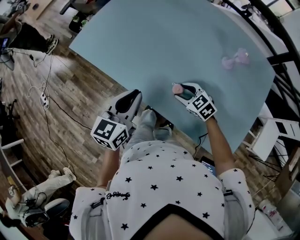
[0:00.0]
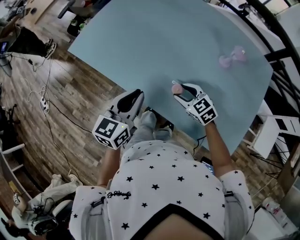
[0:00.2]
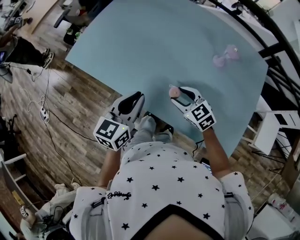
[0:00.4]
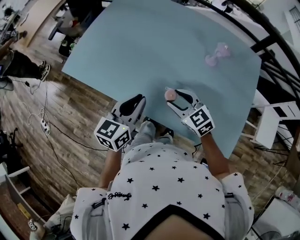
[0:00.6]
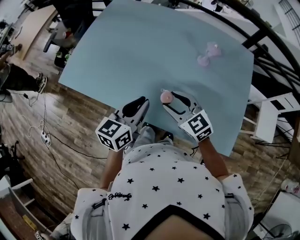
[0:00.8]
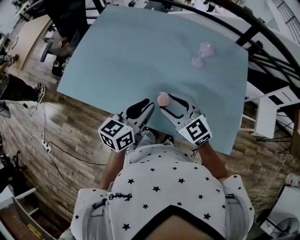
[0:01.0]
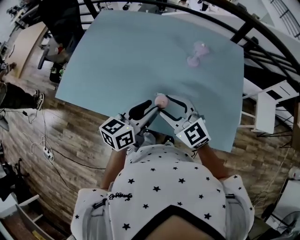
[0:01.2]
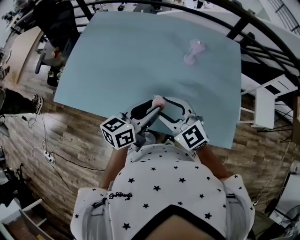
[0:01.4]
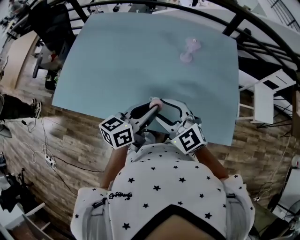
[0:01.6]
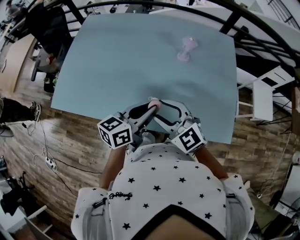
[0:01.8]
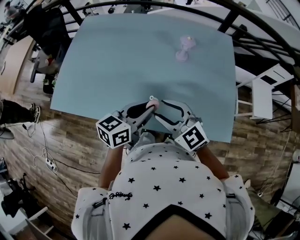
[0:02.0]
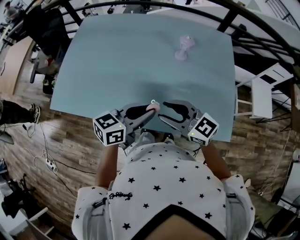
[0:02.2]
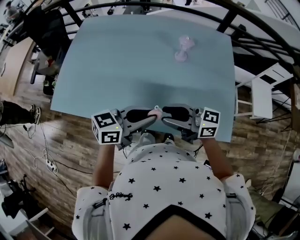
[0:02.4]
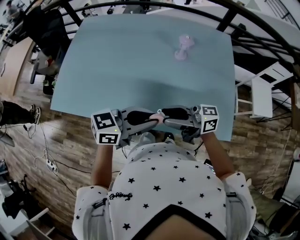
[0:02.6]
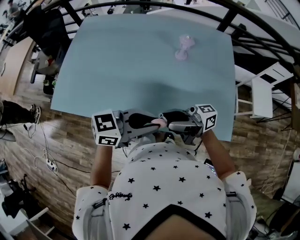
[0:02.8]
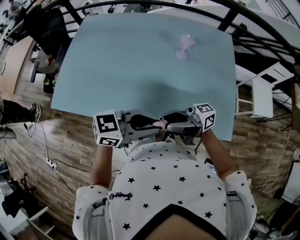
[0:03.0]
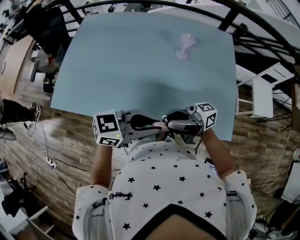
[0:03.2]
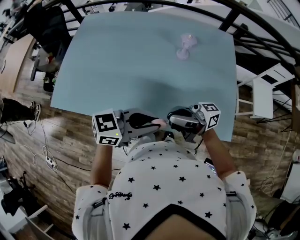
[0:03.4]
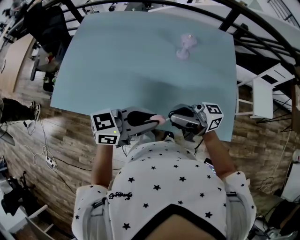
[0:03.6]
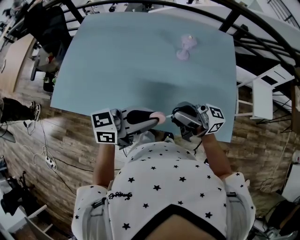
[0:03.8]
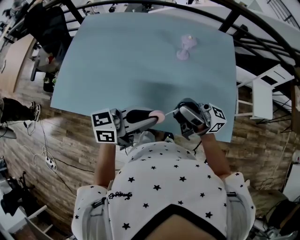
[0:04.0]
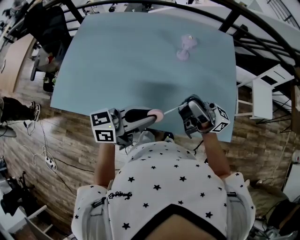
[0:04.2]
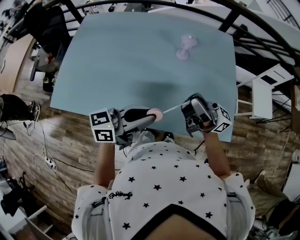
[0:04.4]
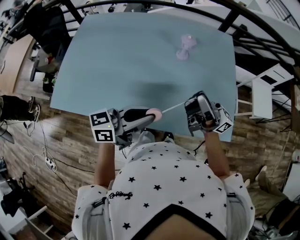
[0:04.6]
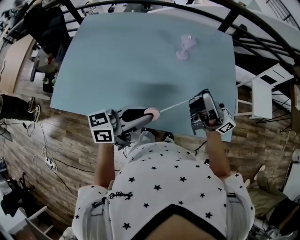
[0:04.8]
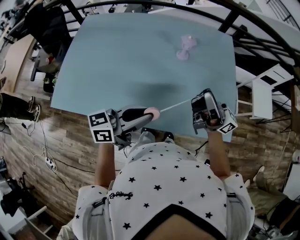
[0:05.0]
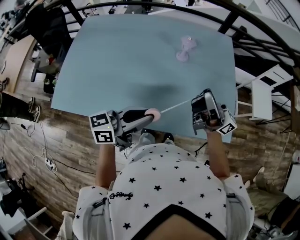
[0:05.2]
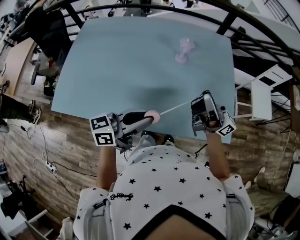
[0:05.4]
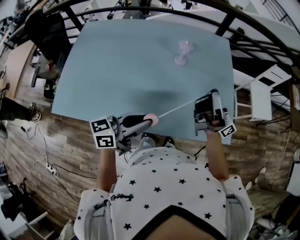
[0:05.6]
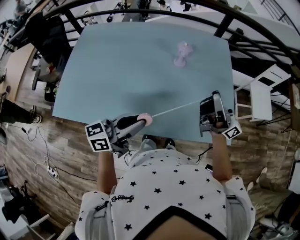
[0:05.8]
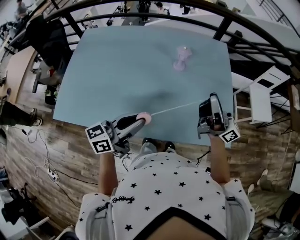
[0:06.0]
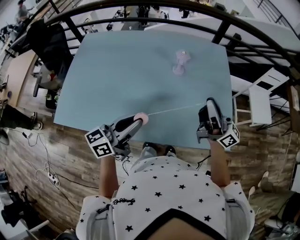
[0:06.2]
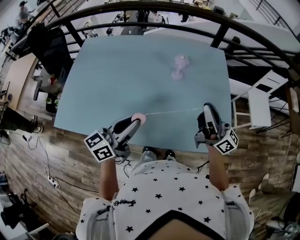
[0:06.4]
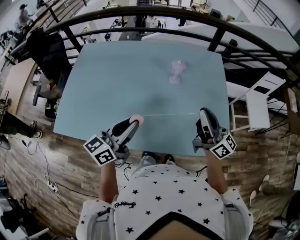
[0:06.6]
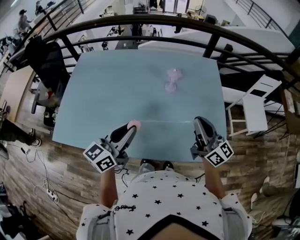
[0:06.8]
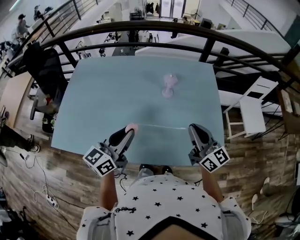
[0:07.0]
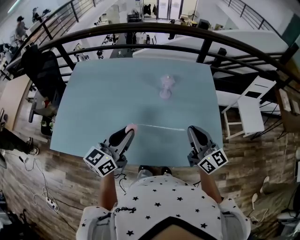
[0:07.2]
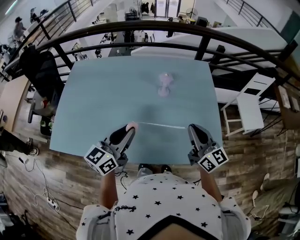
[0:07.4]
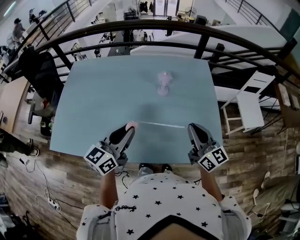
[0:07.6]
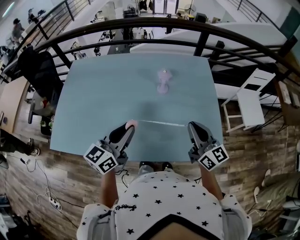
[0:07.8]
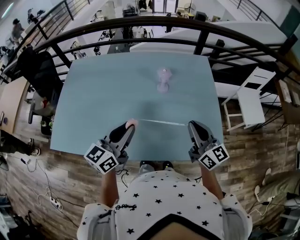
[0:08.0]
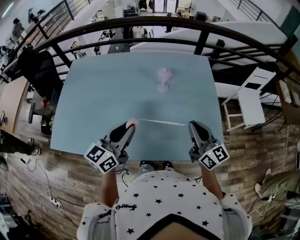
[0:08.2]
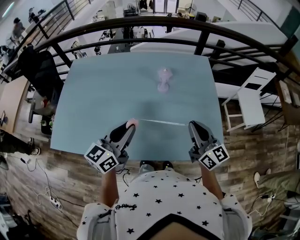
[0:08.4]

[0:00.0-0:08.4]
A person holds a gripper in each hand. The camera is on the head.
0:00.0 to 0:01.4: The left gripper changes place by about 15 cm, rotates some 40 degrees, and opens. Meanwhile the right gripper travels upward by about 20 cm, and swivels some 40 degrees.
0:01.4 to 0:02.8: The left gripper ends up about 10 cm from where it was, and changes its angle by approximately 40 degrees, while the right gripper shifts by some 10 cm, and points its fingers approximately 50 degrees further upward.
0:02.8 to 0:04.2: The right gripper ends up some 10 cm from where it was, turns by approximately 30 degrees, and closes its fingers.
0:04.2 to 0:05.6: The right gripper moves some 10 cm, and rotates about 20 degrees.
0:05.6 to 0:07.0: The right gripper tilts its fingers about 40 degrees downward, while the left gripper heads forward, covering about 5 cm, and swivels approximately 30 degrees.
0:07.0 to 0:08.4: There are only small adjustments of the grippers.

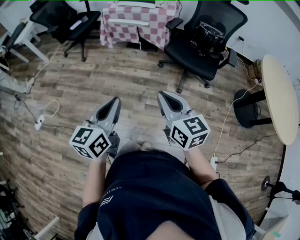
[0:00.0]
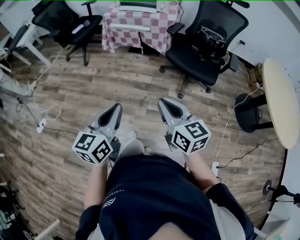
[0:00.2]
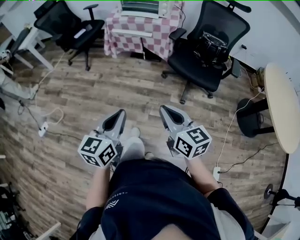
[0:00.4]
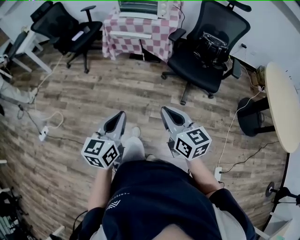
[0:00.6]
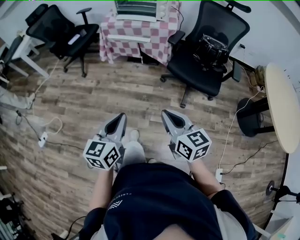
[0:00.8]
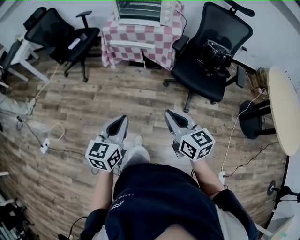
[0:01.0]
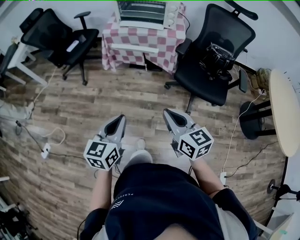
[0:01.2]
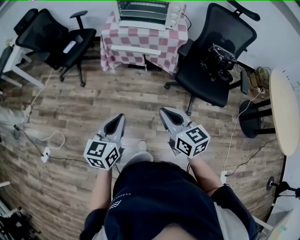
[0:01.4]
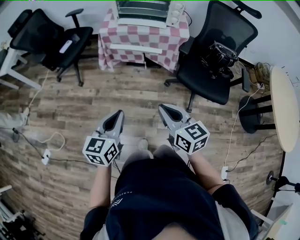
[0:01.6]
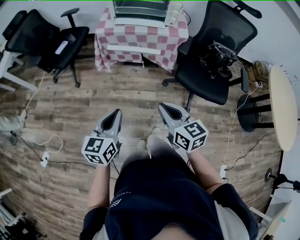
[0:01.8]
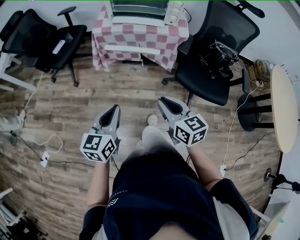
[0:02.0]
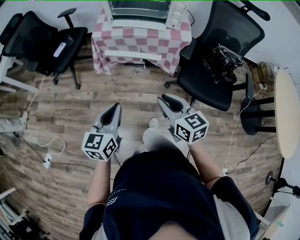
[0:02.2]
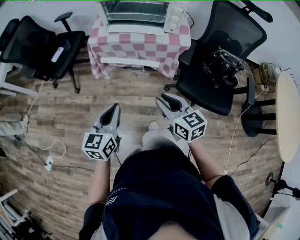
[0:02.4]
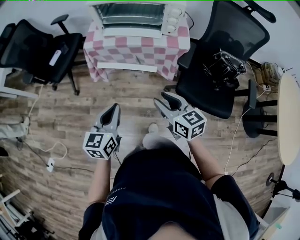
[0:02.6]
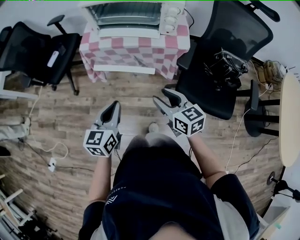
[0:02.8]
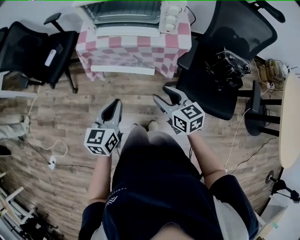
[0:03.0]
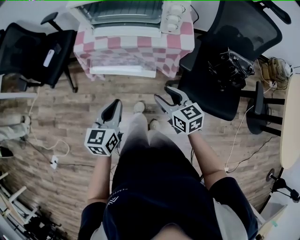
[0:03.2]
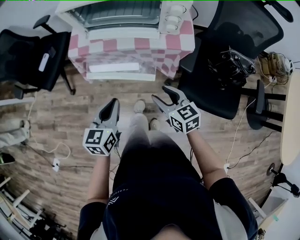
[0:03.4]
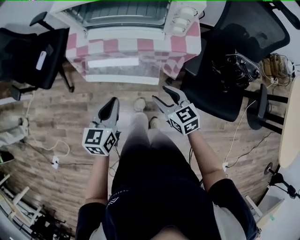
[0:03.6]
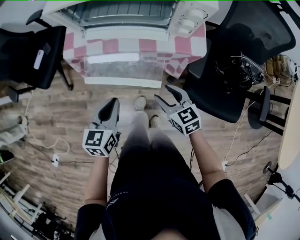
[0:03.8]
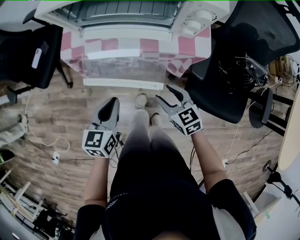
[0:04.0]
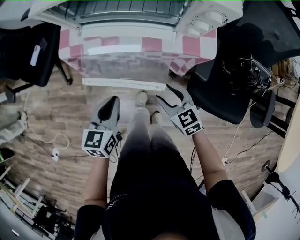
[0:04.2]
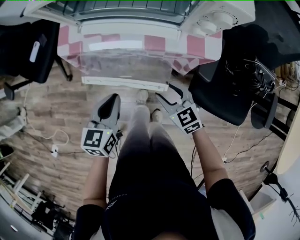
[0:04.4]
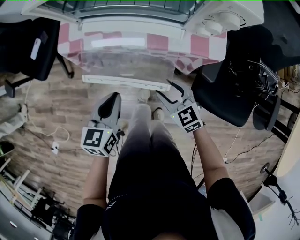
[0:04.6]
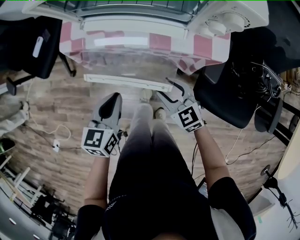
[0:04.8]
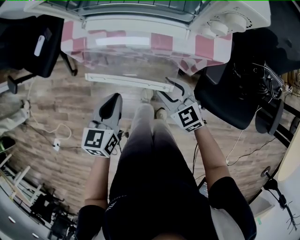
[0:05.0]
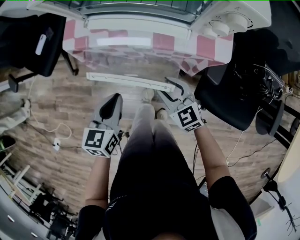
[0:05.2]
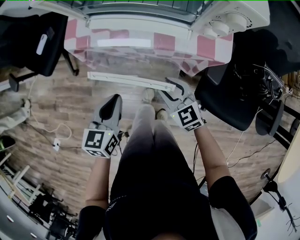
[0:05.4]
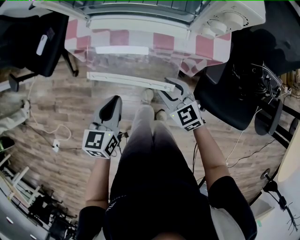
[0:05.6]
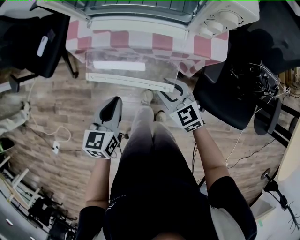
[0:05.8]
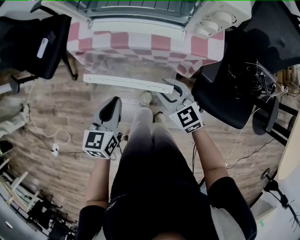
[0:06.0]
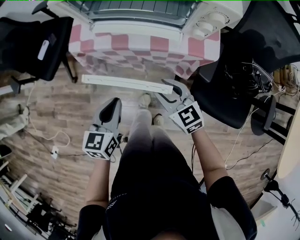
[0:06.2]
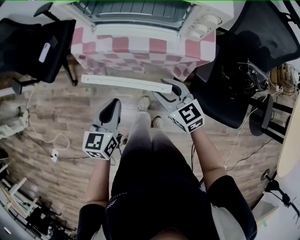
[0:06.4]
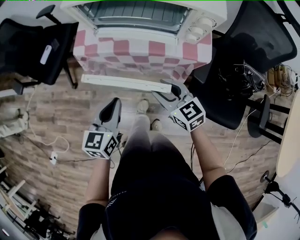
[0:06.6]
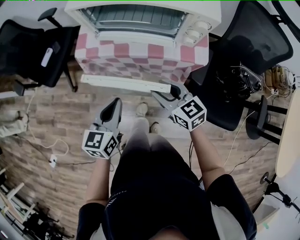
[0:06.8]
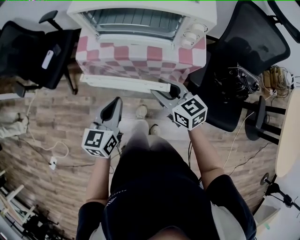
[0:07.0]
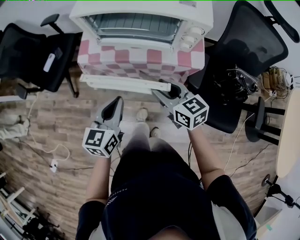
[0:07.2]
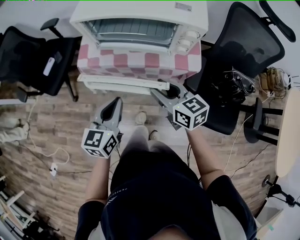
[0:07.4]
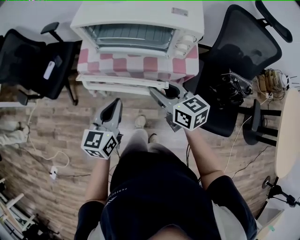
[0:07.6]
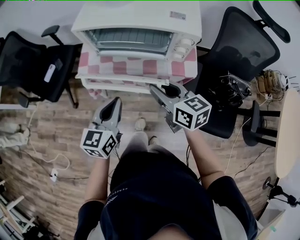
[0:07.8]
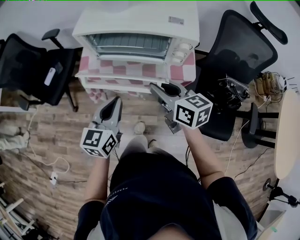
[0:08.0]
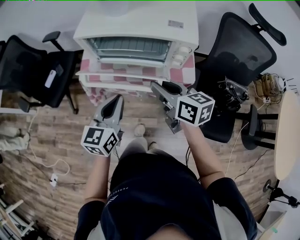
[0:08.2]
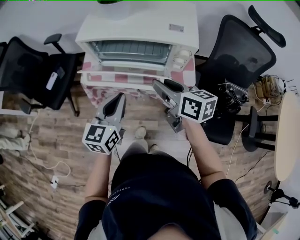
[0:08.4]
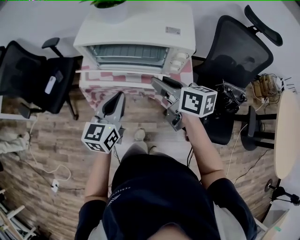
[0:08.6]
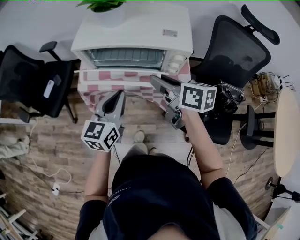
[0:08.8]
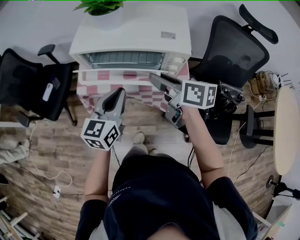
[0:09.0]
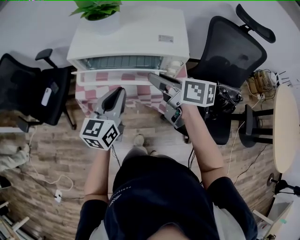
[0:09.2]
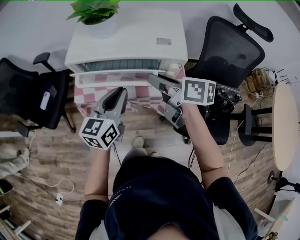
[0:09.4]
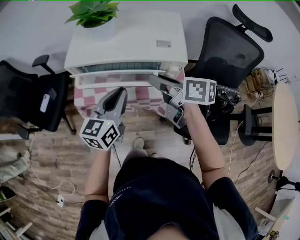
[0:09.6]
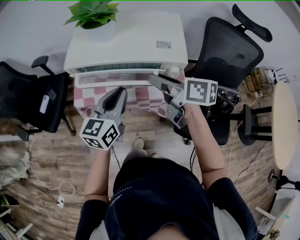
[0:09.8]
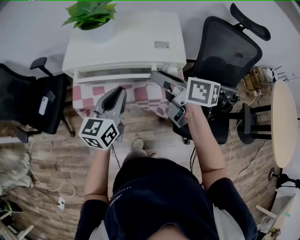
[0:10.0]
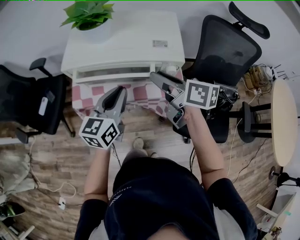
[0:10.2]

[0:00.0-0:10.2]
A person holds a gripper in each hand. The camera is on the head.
0:00.0 to 0:01.4: The right gripper shifts approximately 25 cm forward and to the left. The left gripper moves forward, approximately 25 cm.
0:01.4 to 0:03.0: The grippers both shift forward by some 30 cm. The right gripper opens its fingers.
0:03.0 to 0:04.4: The left gripper is displaced forward and downward by approximately 15 cm. Meanwhile the right gripper travels downward and forward by some 15 cm.
0:04.4 to 0:05.8: The grippers move only a little.
0:05.8 to 0:07.2: The grippers both shift upward by roughly 10 cm.
0:07.2 to 0:08.8: The right gripper shifts about 15 cm upward and forward, and swivels approximately 30 degrees. Meanwhile the left gripper is displaced forward and upward by about 10 cm.
0:08.8 to 0:10.2: The left gripper heads forward, covering approximately 5 cm. Meanwhile the right gripper ends up roughly 5 cm from where it was.

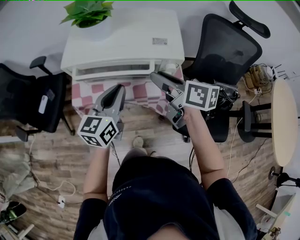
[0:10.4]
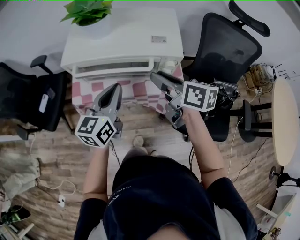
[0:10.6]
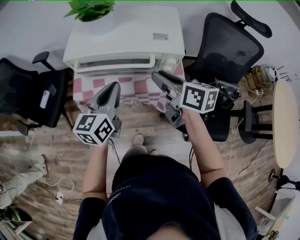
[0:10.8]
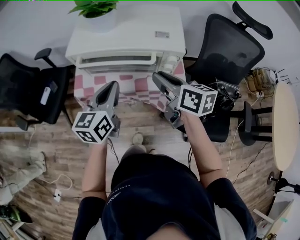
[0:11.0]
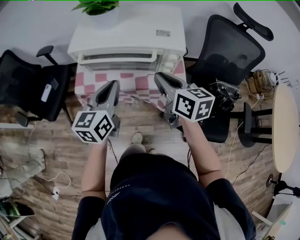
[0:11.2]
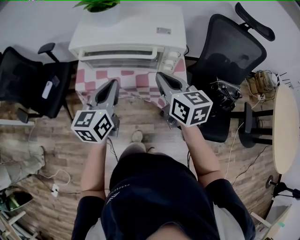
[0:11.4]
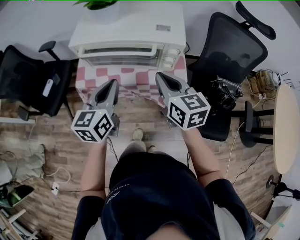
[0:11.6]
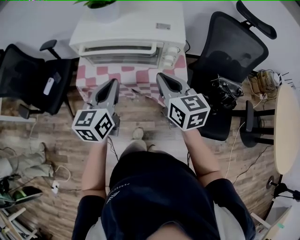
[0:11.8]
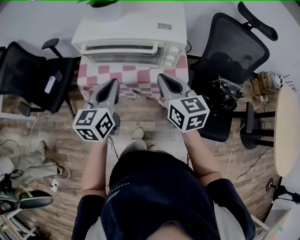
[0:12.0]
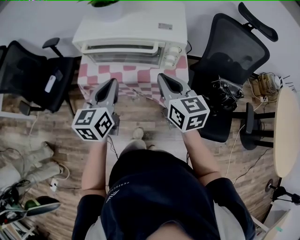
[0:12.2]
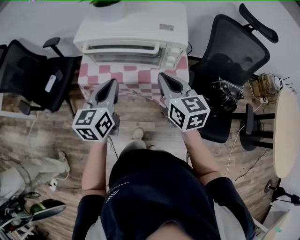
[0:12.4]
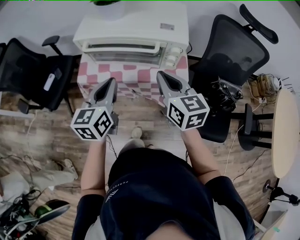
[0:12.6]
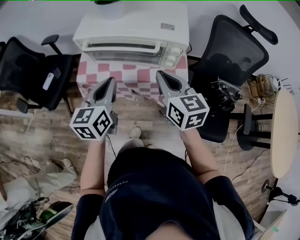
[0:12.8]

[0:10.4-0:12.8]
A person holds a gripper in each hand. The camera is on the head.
0:10.4 to 0:11.6: The two grippers go about 5 cm backward. The right gripper turns by about 30 degrees, and closes.
0:11.6 to 0:12.8: The grippers stay close to where they were, moving slightly.

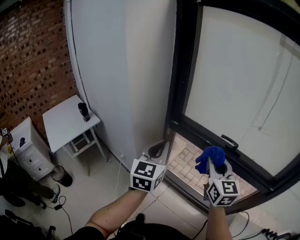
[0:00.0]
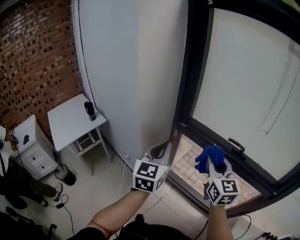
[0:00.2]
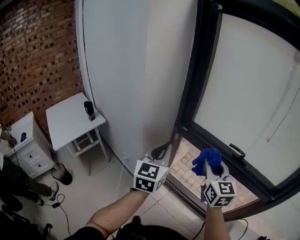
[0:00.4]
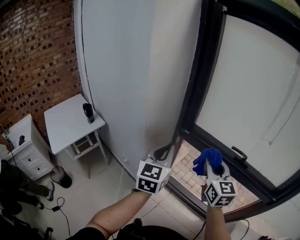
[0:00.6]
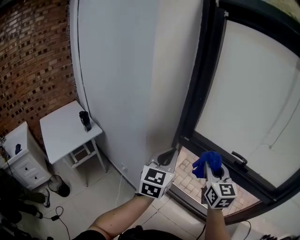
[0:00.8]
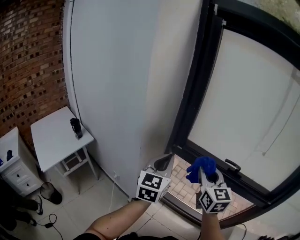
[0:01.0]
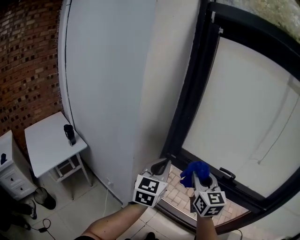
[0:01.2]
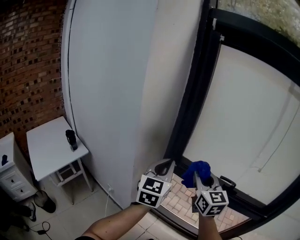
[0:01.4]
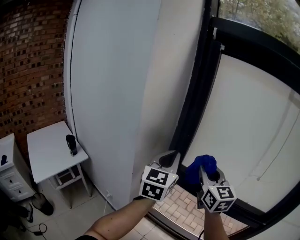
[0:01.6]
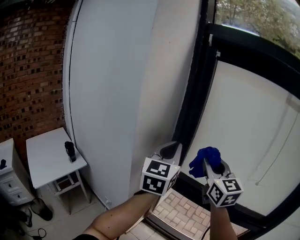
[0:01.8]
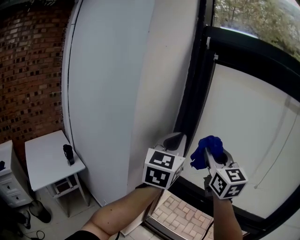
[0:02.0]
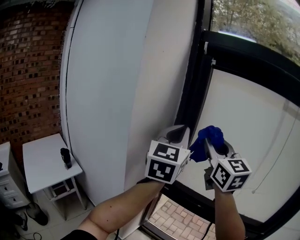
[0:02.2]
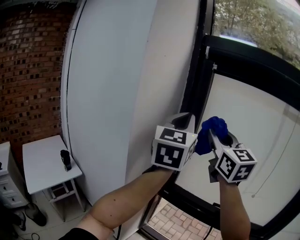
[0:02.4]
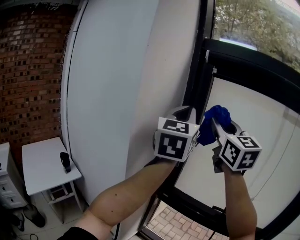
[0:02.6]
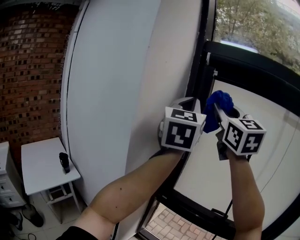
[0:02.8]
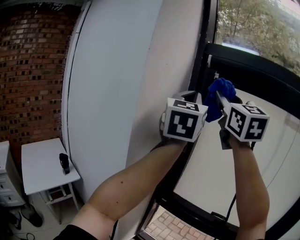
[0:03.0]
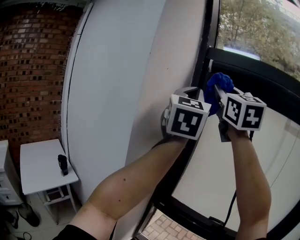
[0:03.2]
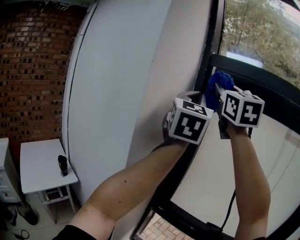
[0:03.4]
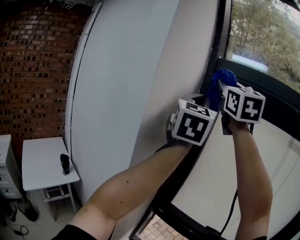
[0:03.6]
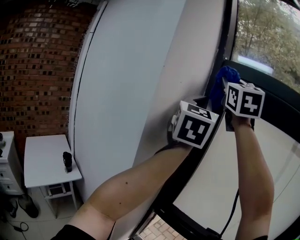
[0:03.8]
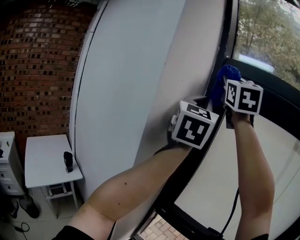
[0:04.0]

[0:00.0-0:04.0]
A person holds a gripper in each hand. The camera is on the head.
0:00.0 to 0:01.4: The left gripper shifts roughly 10 cm forward. The right gripper shifts some 15 cm forward and to the left.
0:01.4 to 0:02.6: The grippers both shift upward by approximately 35 cm. The left gripper turns by roughly 20 degrees, while the right gripper swivels approximately 20 degrees.
0:02.6 to 0:04.0: The left gripper goes approximately 10 cm upward. The right gripper is displaced upward by about 20 cm.
